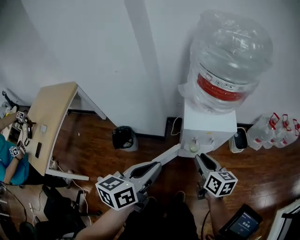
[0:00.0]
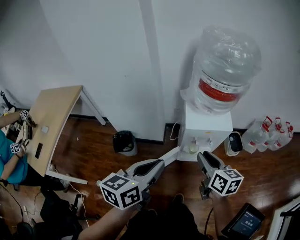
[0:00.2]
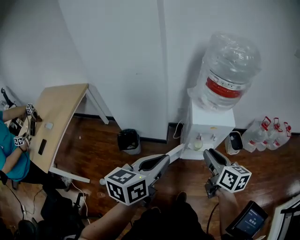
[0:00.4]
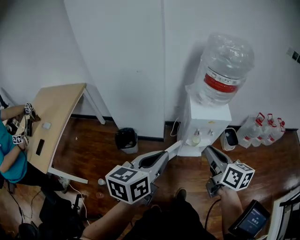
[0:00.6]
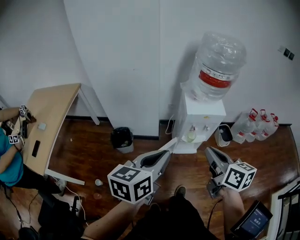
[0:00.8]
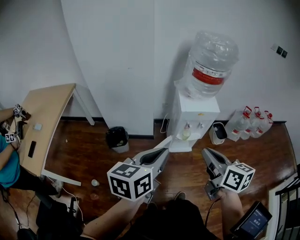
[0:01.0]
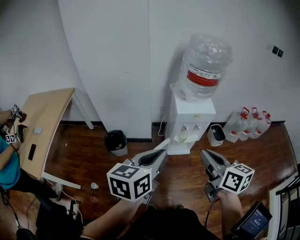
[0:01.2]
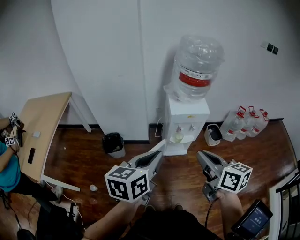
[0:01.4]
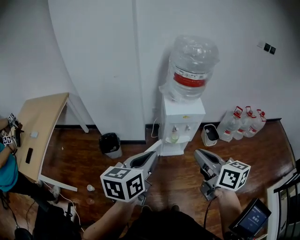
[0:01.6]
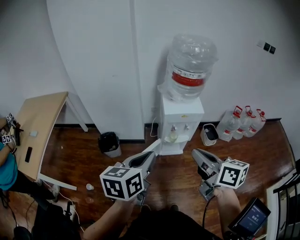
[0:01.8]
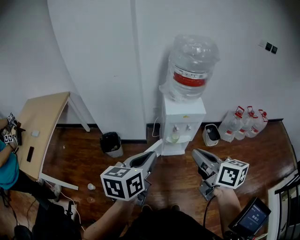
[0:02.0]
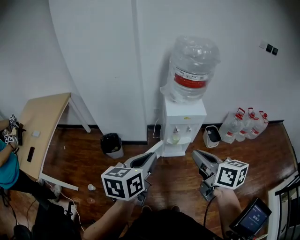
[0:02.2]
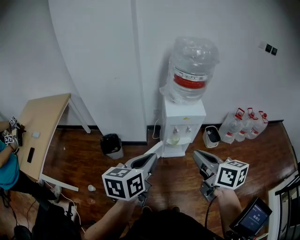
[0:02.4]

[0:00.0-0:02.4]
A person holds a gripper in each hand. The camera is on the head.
0:00.0 to 0:01.2: The left gripper is displaced backward and upward by roughly 20 cm, while the right gripper heads backward and upward, covering roughly 30 cm.
0:01.2 to 0:02.4: There are only small adjustments of the grippers.

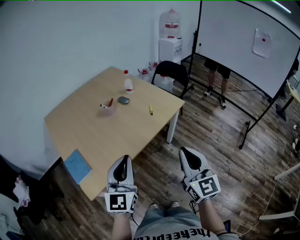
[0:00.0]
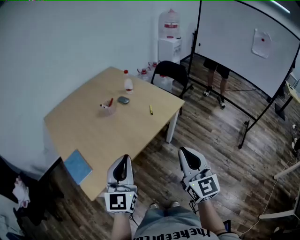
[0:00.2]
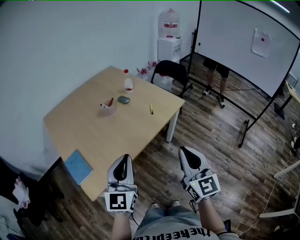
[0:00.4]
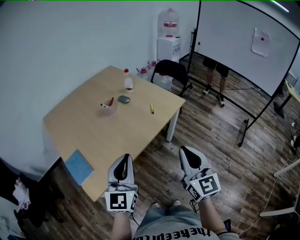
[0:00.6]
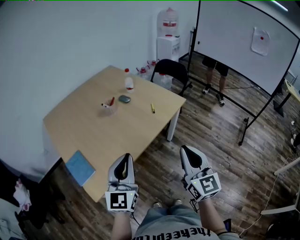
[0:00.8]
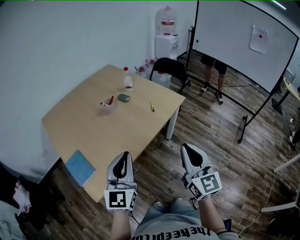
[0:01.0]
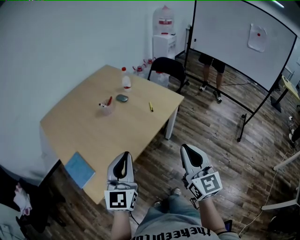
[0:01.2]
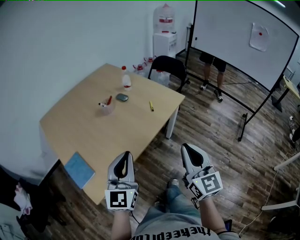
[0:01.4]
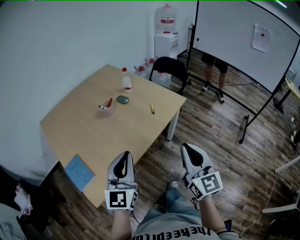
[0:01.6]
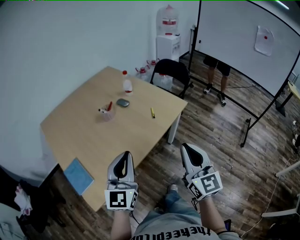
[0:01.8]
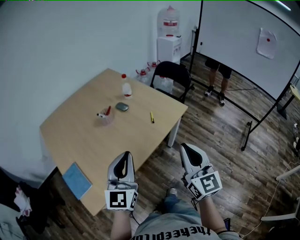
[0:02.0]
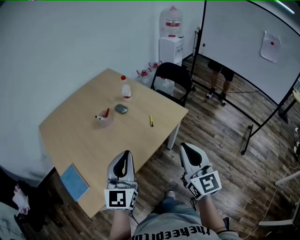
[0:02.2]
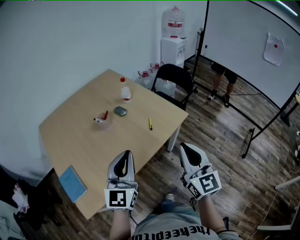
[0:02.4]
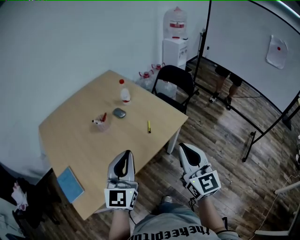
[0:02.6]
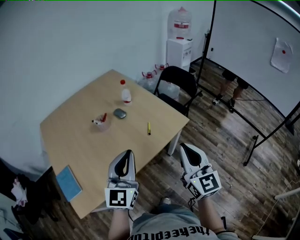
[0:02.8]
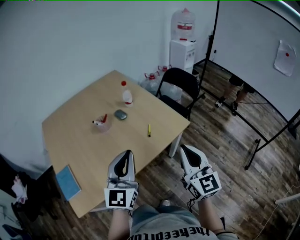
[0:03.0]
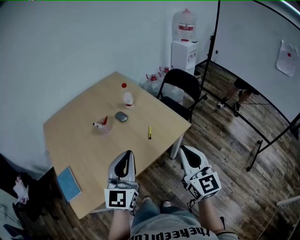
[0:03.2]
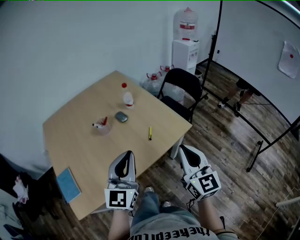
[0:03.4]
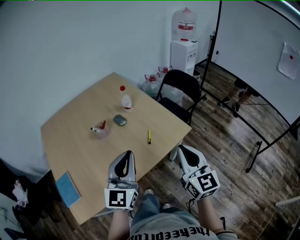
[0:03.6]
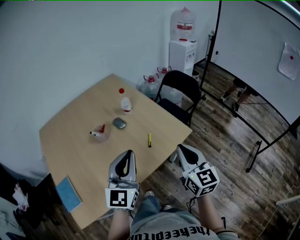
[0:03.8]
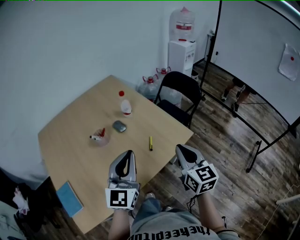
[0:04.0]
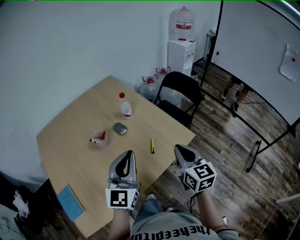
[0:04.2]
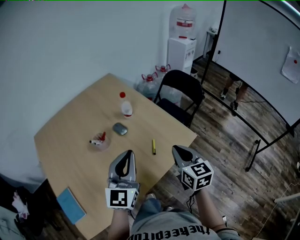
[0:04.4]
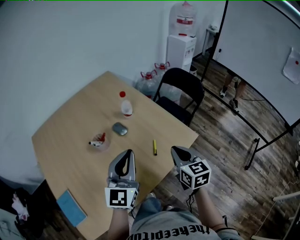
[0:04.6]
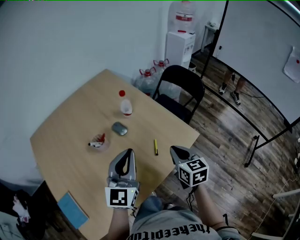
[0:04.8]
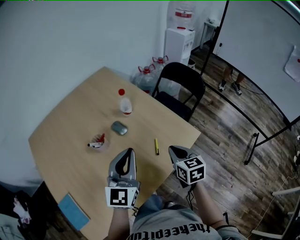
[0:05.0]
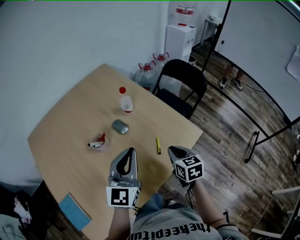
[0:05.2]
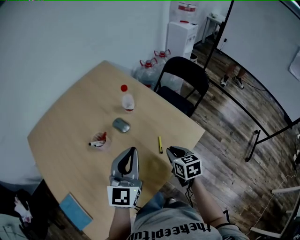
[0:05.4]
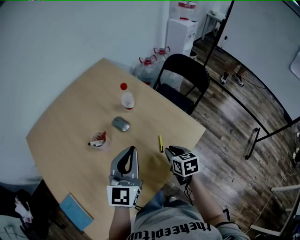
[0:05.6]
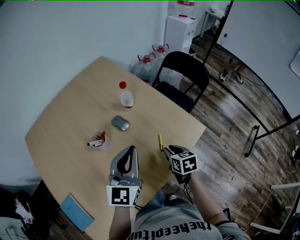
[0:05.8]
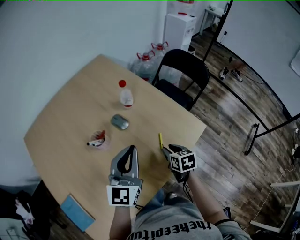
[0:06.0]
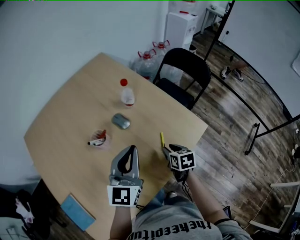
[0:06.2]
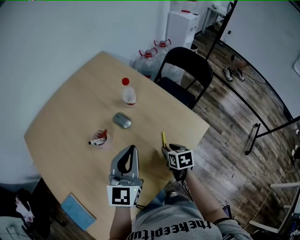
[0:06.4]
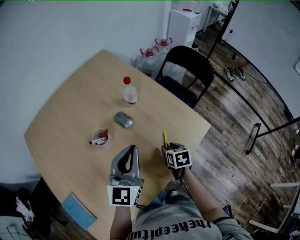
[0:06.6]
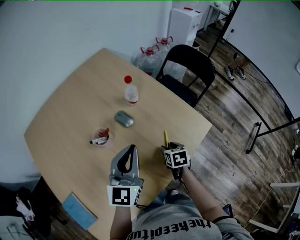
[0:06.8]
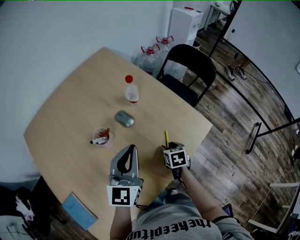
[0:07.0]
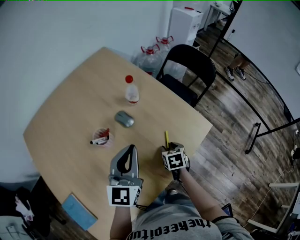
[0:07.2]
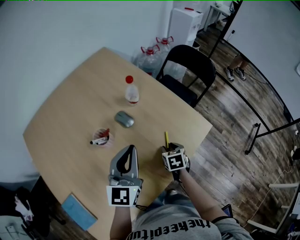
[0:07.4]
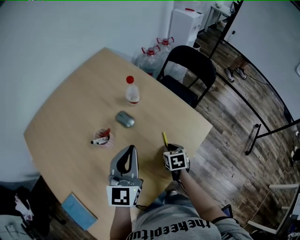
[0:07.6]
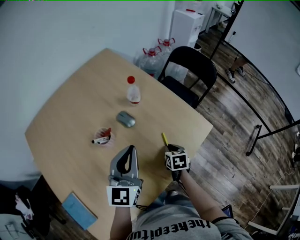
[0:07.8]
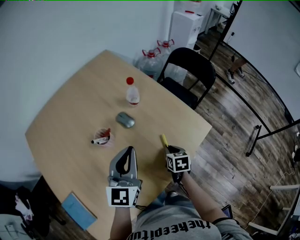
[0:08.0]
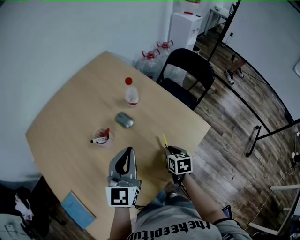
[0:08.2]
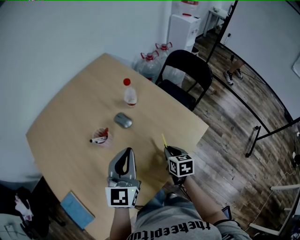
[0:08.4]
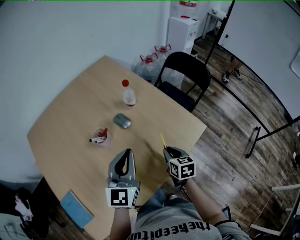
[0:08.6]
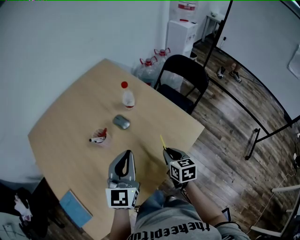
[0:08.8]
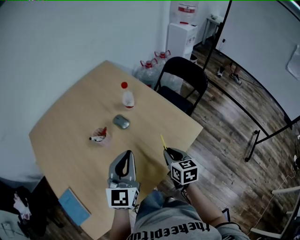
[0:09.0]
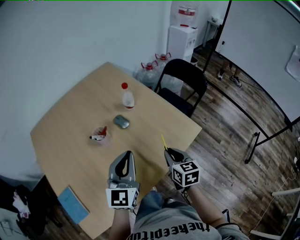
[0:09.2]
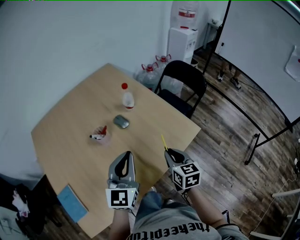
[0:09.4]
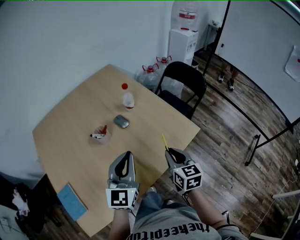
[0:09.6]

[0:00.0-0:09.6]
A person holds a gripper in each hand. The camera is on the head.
0:00.0 to 0:01.6: The grippers move only a little.
0:01.6 to 0:03.2: The grippers both shift forward and to the right by approximately 20 cm.
0:03.2 to 0:04.8: The left gripper goes about 15 cm forward. Meanwhile the right gripper goes about 20 cm forward and downward, and changes its angle by roughly 30 degrees.
0:04.8 to 0:06.4: The left gripper shifts by approximately 5 cm, while the right gripper is displaced downward by approximately 15 cm, rotates approximately 30 degrees, and opens up.
0:06.4 to 0:08.0: The right gripper closes up.
0:08.0 to 0:09.6: The left gripper moves backward, about 10 cm; the right gripper is displaced upward and backward by roughly 20 cm, and turns by approximately 30 degrees.

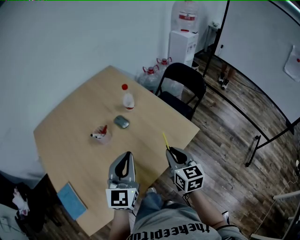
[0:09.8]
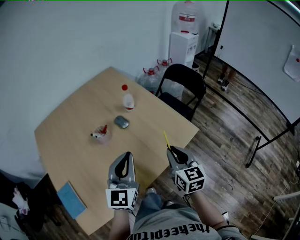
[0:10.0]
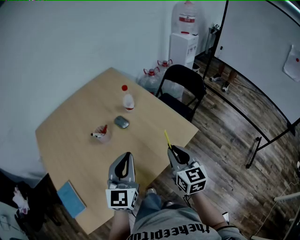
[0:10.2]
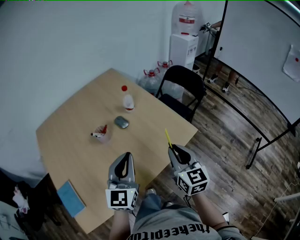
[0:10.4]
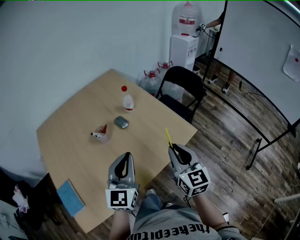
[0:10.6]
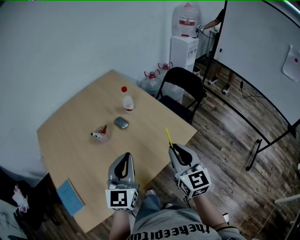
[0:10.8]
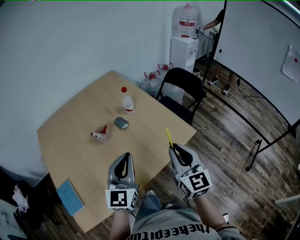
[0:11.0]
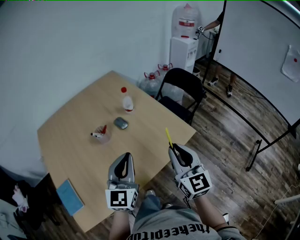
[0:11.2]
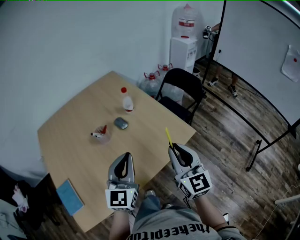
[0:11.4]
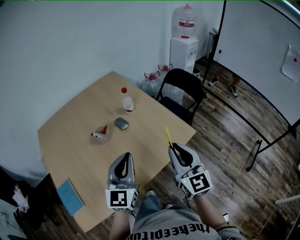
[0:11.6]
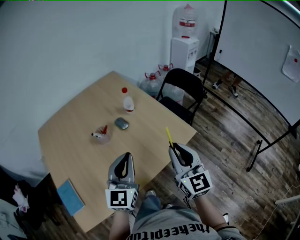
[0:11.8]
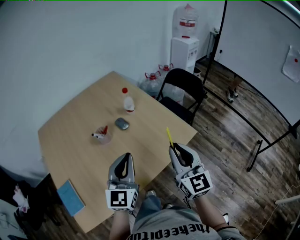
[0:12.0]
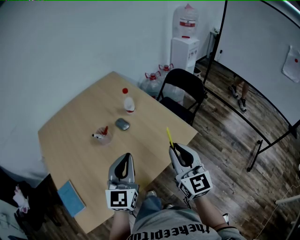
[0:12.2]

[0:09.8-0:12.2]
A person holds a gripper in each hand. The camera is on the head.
0:09.8 to 0:11.0: The right gripper moves upward, some 10 cm, and swivels roughly 20 degrees.
0:11.0 to 0:12.2: The grippers make only small movements.

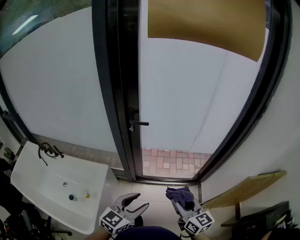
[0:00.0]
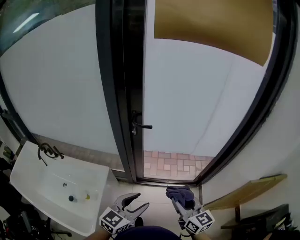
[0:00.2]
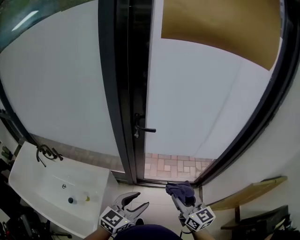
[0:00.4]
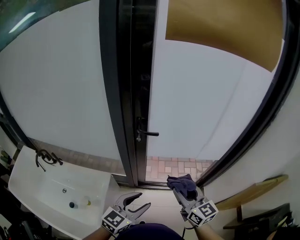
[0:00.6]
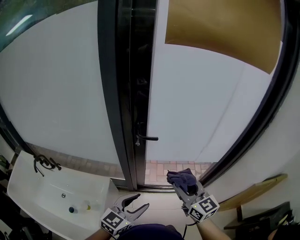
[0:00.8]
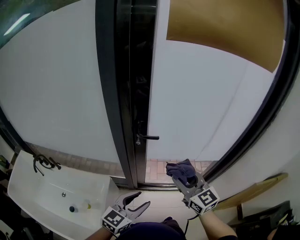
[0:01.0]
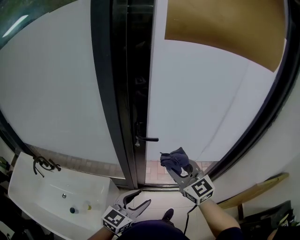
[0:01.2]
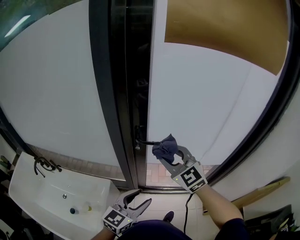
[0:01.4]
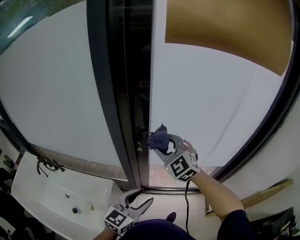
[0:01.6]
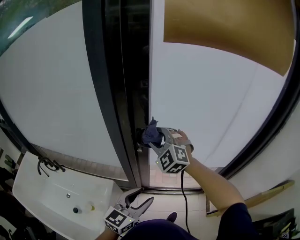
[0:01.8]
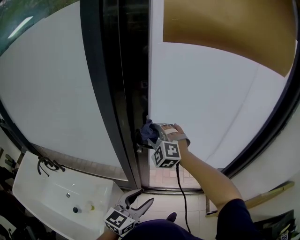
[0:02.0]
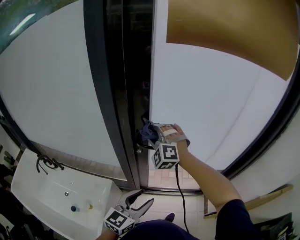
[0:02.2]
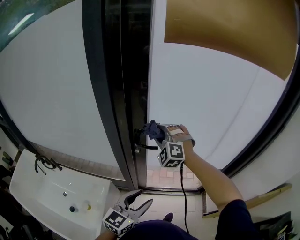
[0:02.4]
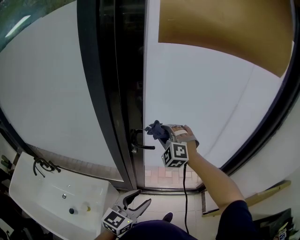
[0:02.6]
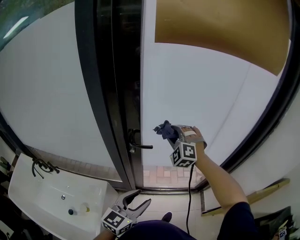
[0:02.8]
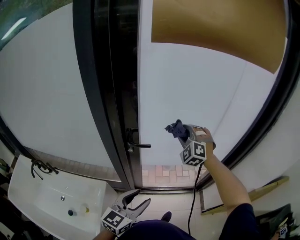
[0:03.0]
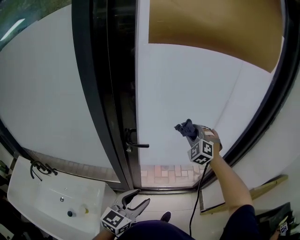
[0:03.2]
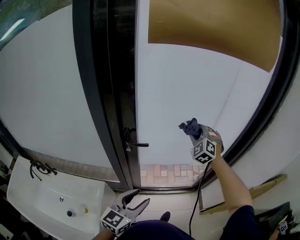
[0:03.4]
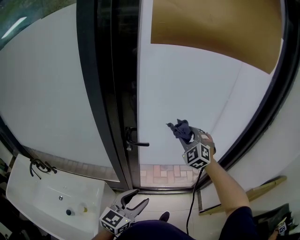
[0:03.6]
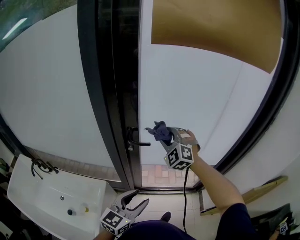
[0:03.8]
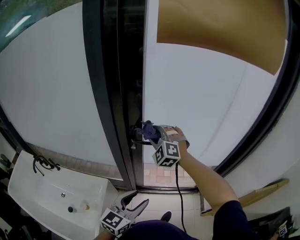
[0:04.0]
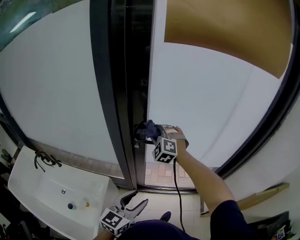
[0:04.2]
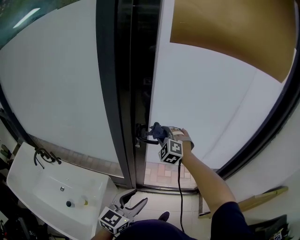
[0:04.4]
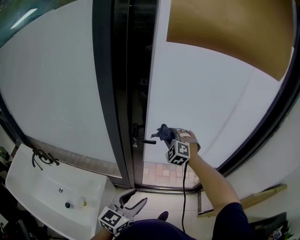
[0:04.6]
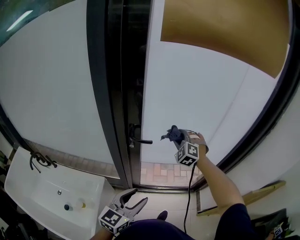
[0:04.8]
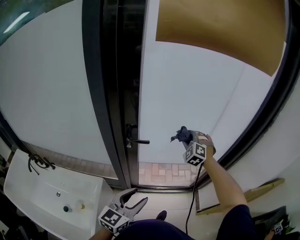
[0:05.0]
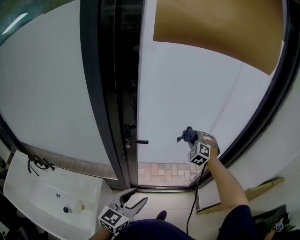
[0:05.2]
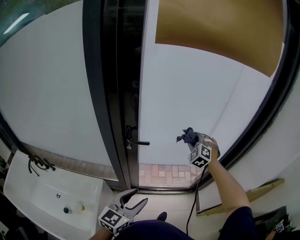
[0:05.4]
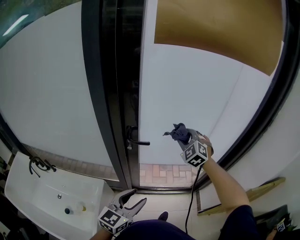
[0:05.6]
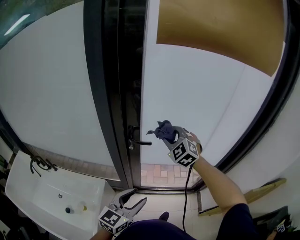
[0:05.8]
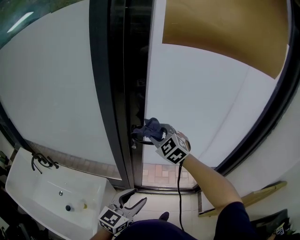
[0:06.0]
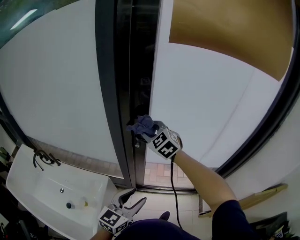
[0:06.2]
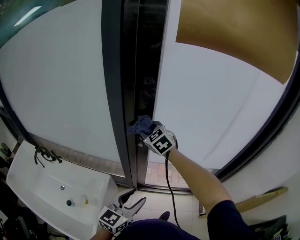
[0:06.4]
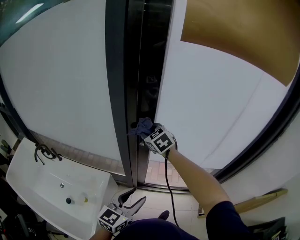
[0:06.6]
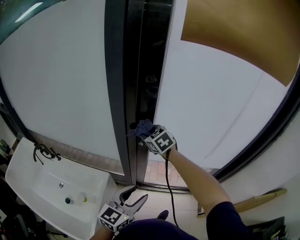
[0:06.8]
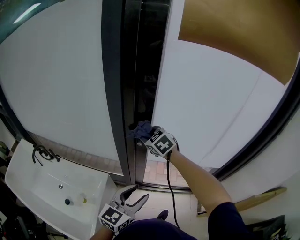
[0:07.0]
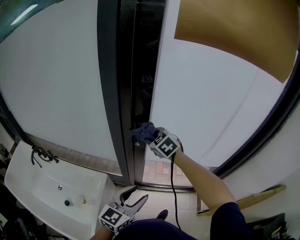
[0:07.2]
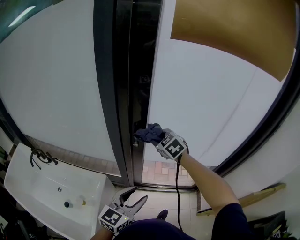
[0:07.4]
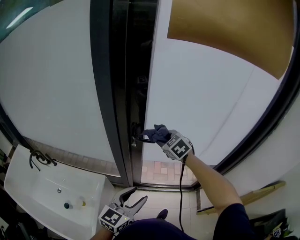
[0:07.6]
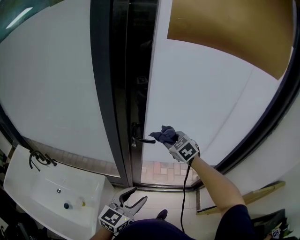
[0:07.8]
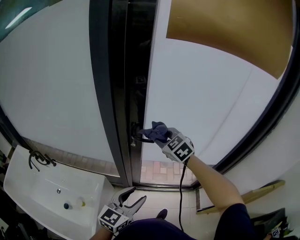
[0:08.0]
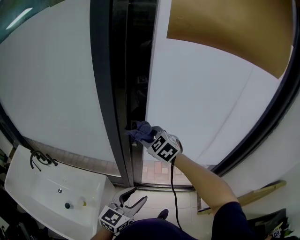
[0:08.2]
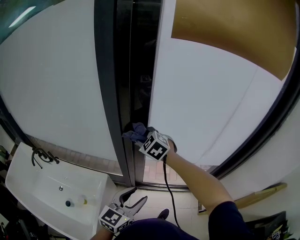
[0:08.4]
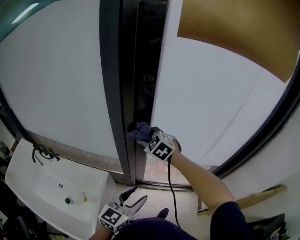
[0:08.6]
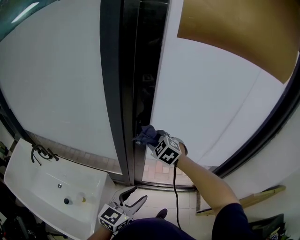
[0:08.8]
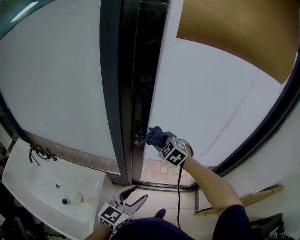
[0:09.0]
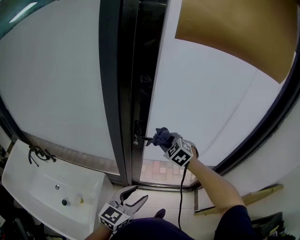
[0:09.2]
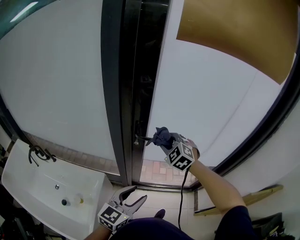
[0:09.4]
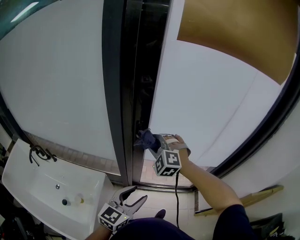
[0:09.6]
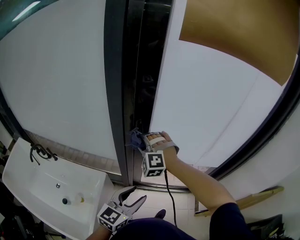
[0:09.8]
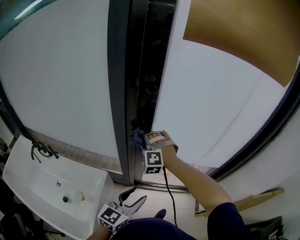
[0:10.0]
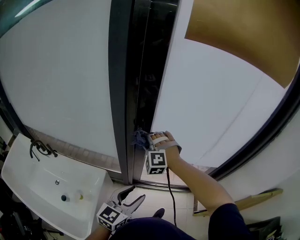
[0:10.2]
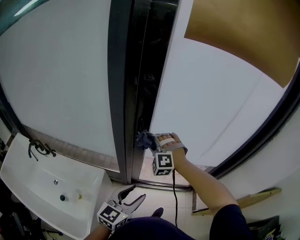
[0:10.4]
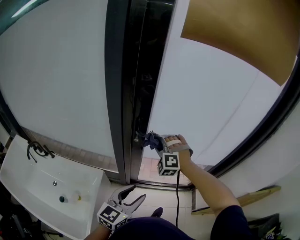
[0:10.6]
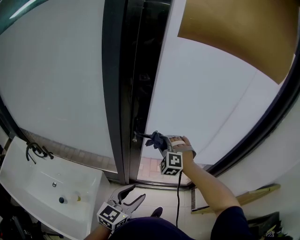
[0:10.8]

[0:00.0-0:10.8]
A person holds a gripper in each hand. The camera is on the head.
0:00.0 to 0:01.6: The left gripper is displaced forward and to the left by roughly 20 cm. The right gripper is displaced forward, to the left and upward by about 40 cm, and rolls counterclockwise, seen from behind, by some 60 degrees.
0:01.6 to 0:03.0: The right gripper is displaced to the right and forward by approximately 20 cm, and rotates some 40 degrees.
0:03.0 to 0:04.6: The right gripper moves left and right over roughly 25 cm, changing direction 2 times.
0:04.6 to 0:06.2: The right gripper heads to the left, upward and backward, covering roughly 15 cm, and turns by some 30 degrees.
0:06.2 to 0:07.8: The right gripper travels to the right and downward by approximately 15 cm.
0:07.8 to 0:09.2: The right gripper travels to the left and back again, some 15 cm each way.
0:09.2 to 0:10.8: The right gripper goes to the left and returns, about 15 cm each way, and turns by roughly 40 degrees.
